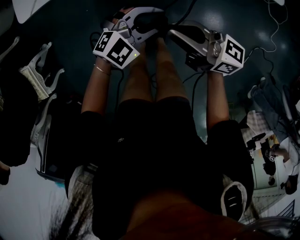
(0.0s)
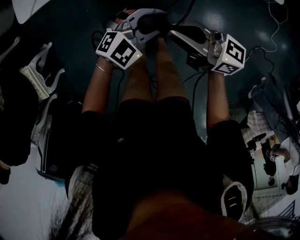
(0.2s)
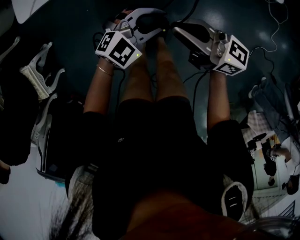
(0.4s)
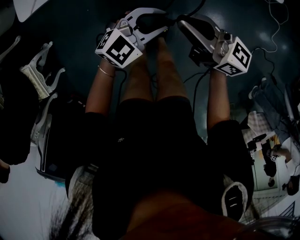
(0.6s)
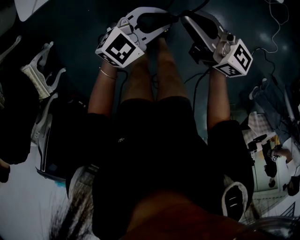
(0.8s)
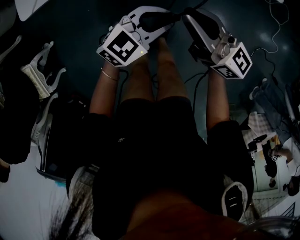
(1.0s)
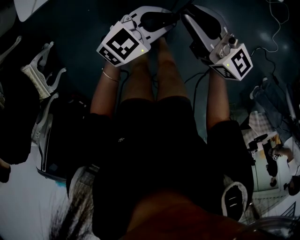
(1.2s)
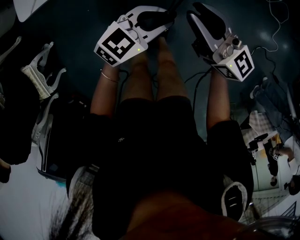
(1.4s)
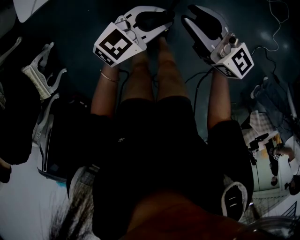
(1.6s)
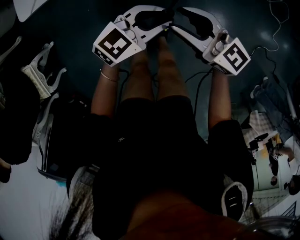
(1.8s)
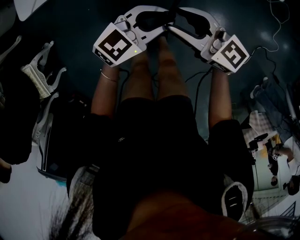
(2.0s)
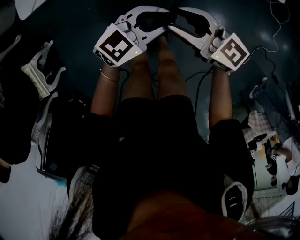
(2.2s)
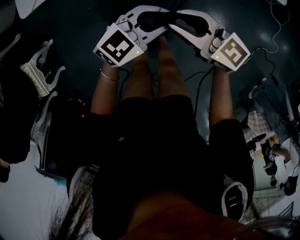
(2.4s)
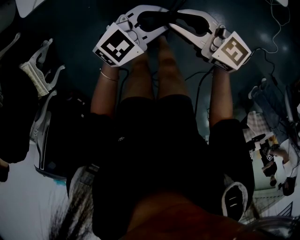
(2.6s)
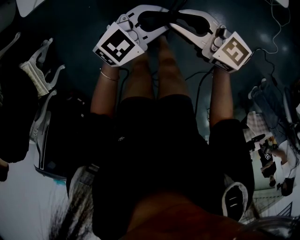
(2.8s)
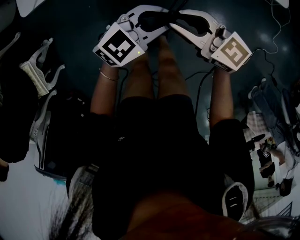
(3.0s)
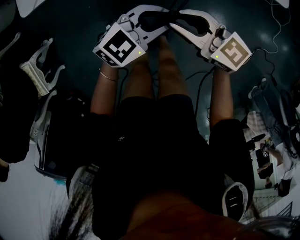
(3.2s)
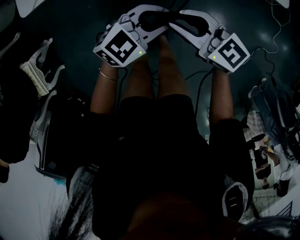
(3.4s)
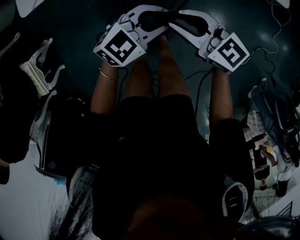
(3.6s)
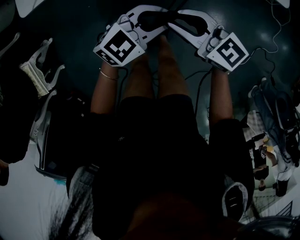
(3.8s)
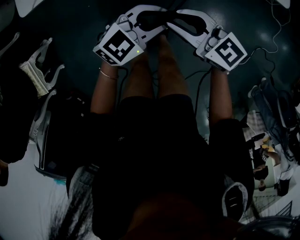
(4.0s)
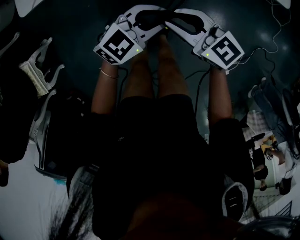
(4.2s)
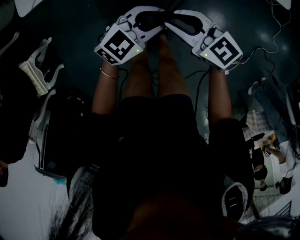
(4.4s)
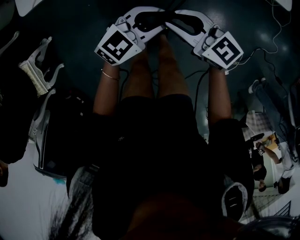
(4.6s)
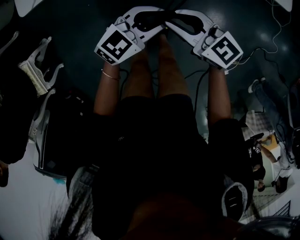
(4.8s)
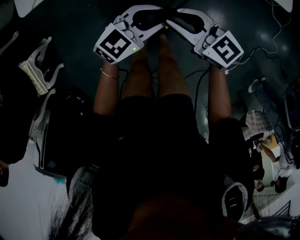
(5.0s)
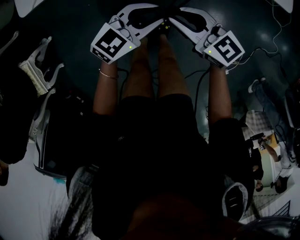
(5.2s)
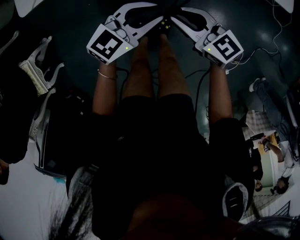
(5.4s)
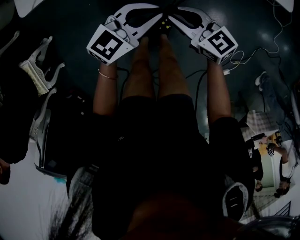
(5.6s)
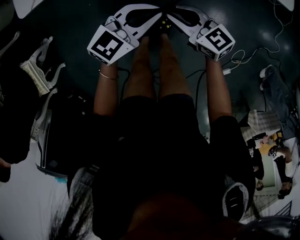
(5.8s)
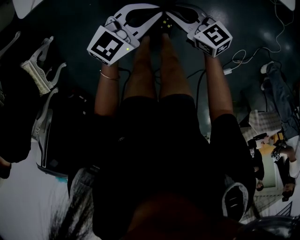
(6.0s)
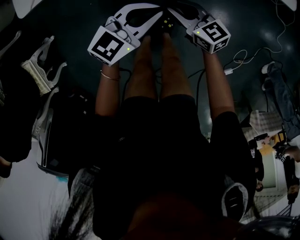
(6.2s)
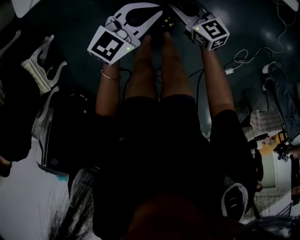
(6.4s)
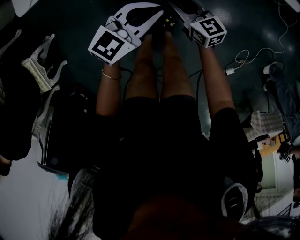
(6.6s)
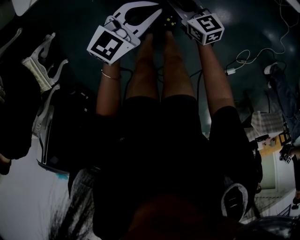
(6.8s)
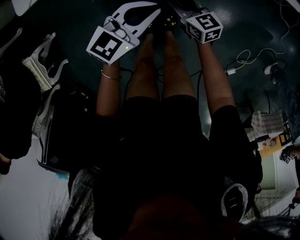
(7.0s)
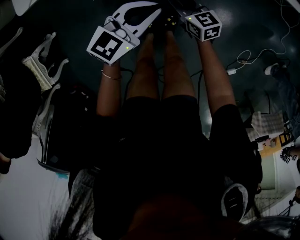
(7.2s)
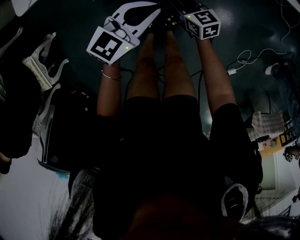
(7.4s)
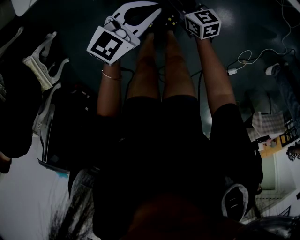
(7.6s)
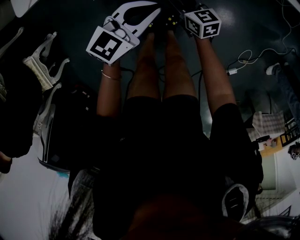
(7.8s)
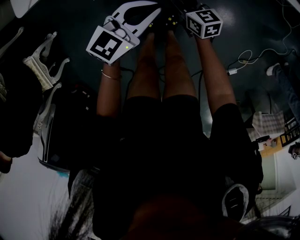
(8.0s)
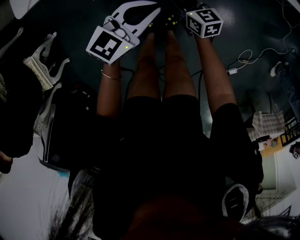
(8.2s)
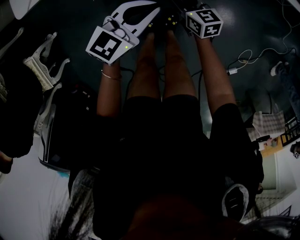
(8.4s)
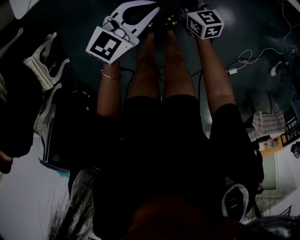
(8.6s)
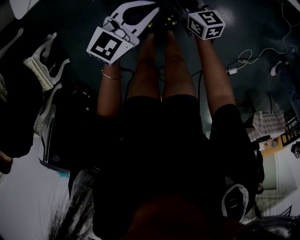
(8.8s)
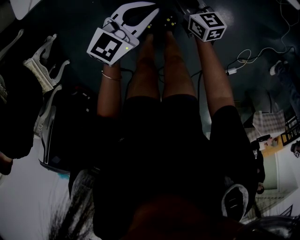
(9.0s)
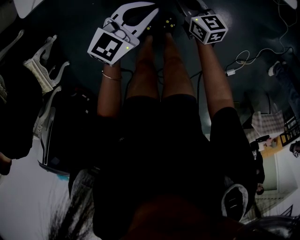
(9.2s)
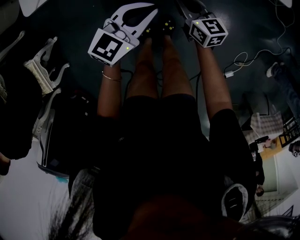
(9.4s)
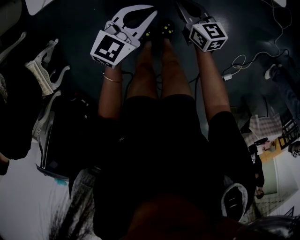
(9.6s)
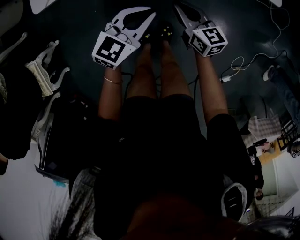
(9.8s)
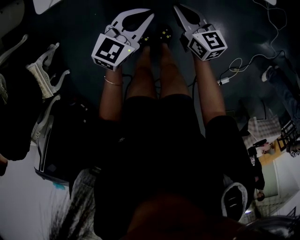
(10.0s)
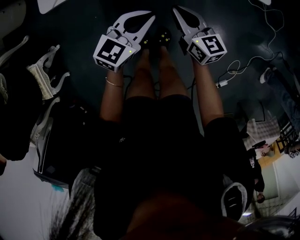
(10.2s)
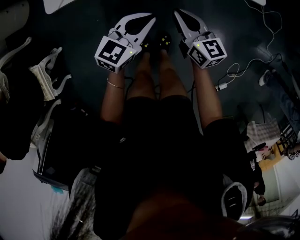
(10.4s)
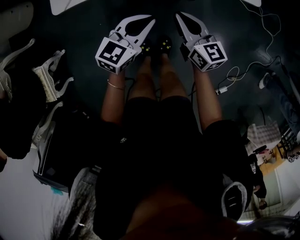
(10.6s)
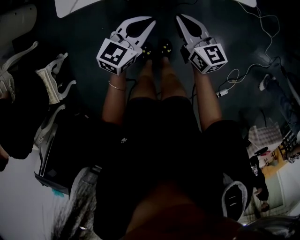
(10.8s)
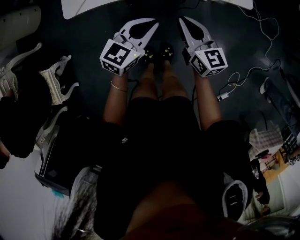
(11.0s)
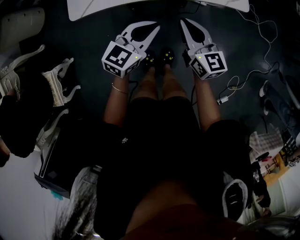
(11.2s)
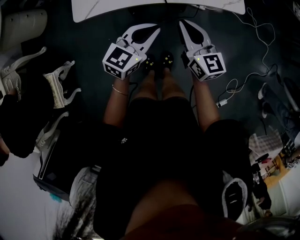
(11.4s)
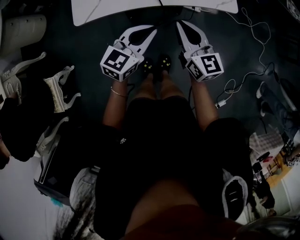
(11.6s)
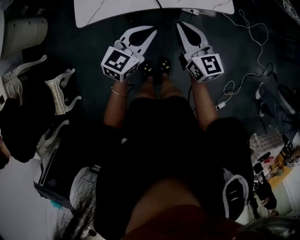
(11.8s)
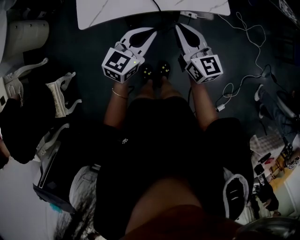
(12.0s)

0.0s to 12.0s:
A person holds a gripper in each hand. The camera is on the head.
0.0s to 1.6s: The left gripper rotates some 30 degrees; the right gripper swivels some 30 degrees.
1.6s to 3.0s: The right gripper moves approximately 5 cm, and rotates about 20 degrees.
3.0s to 4.4s: The grippers stay close to where they were, moving slightly.
4.4s to 6.0s: The right gripper travels downward by roughly 10 cm.
6.0s to 7.6s: The right gripper moves downward, approximately 10 cm.
7.6s to 9.0s: The grippers make only small movements.
9.0s to 10.4s: The left gripper heads upward, covering some 5 cm. The right gripper moves upward, roughly 15 cm.
10.4s to 12.0s: The two grippers go approximately 20 cm upward.

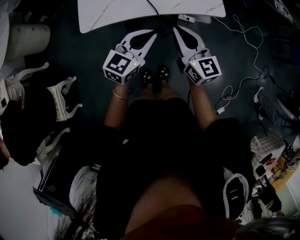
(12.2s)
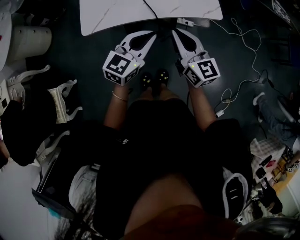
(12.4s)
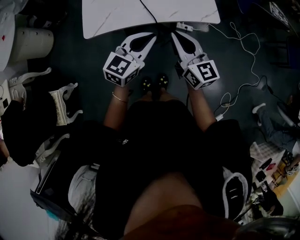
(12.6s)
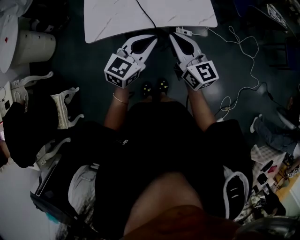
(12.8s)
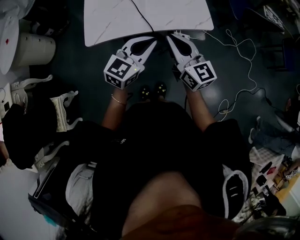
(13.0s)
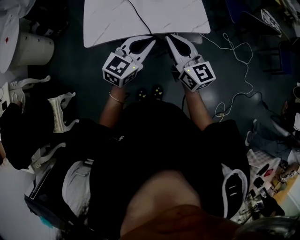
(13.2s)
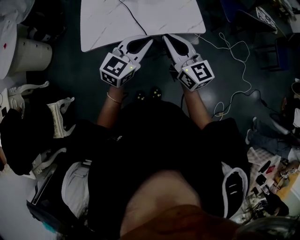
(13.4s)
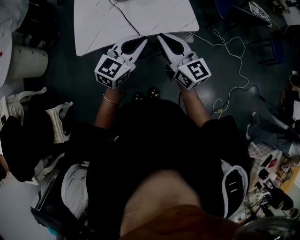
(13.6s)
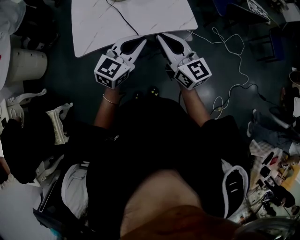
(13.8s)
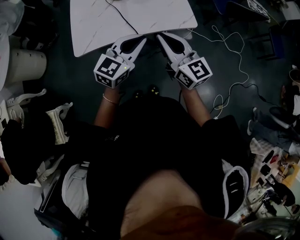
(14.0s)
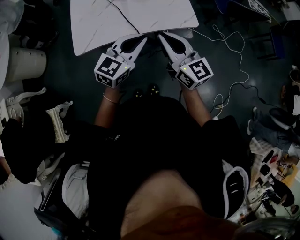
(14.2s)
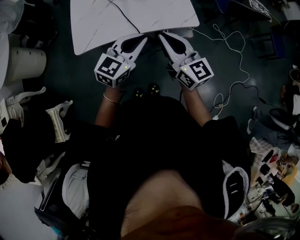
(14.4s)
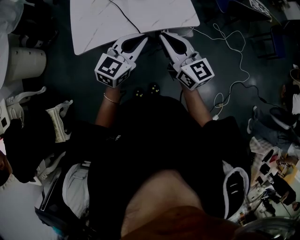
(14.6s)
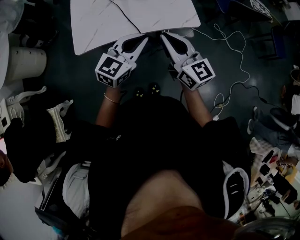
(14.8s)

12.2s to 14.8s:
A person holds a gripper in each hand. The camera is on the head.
12.2s to 13.4s: Both grippers travel together upward, about 10 cm.
13.4s to 14.8s: The grippers make only small movements.

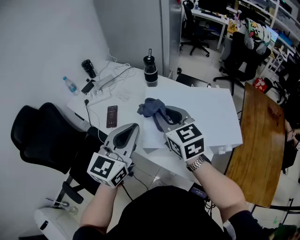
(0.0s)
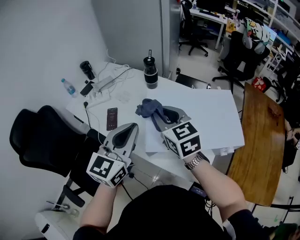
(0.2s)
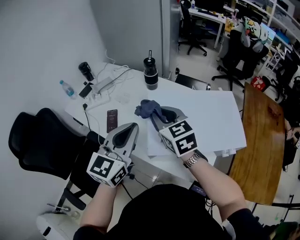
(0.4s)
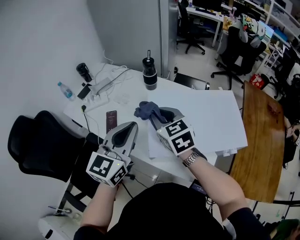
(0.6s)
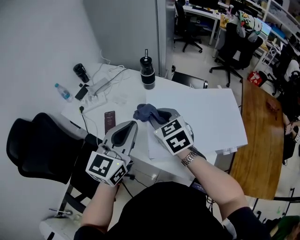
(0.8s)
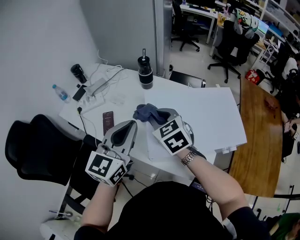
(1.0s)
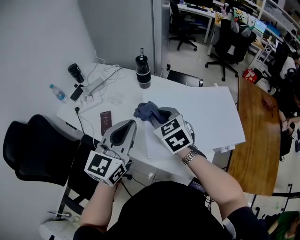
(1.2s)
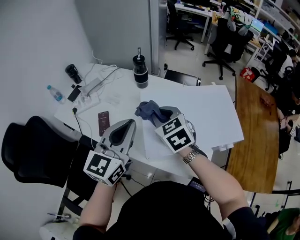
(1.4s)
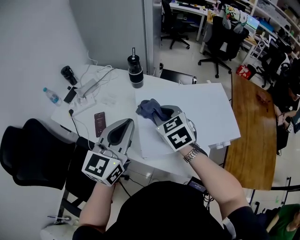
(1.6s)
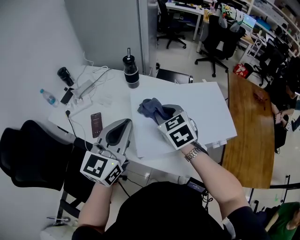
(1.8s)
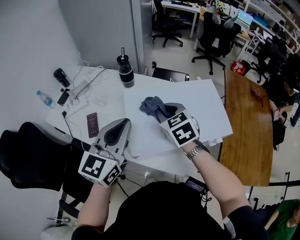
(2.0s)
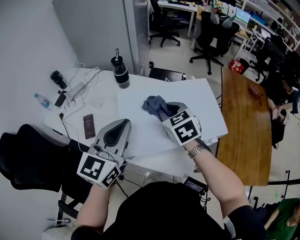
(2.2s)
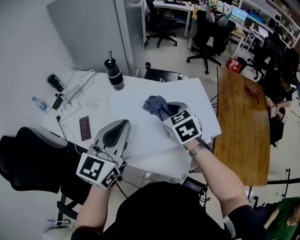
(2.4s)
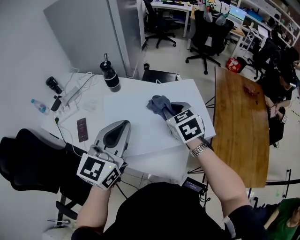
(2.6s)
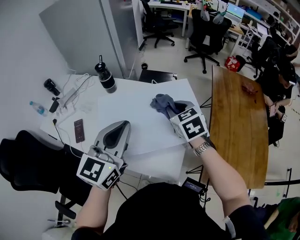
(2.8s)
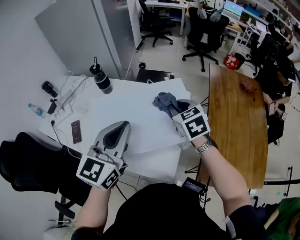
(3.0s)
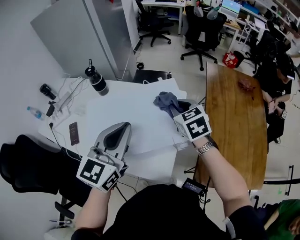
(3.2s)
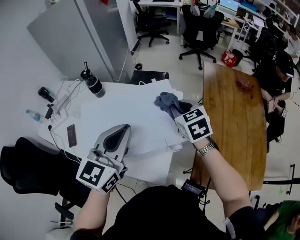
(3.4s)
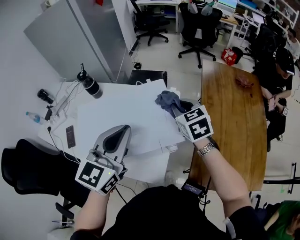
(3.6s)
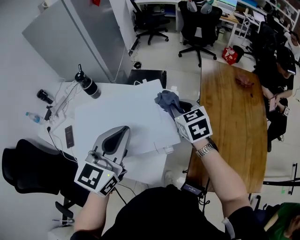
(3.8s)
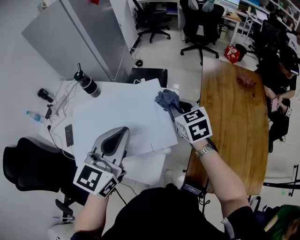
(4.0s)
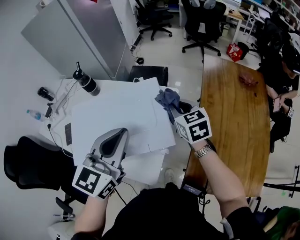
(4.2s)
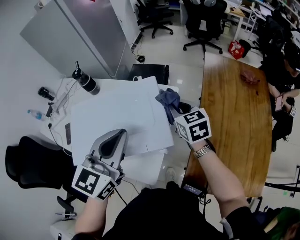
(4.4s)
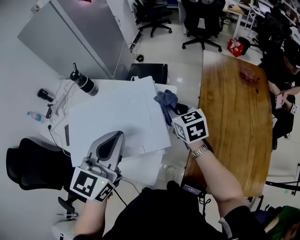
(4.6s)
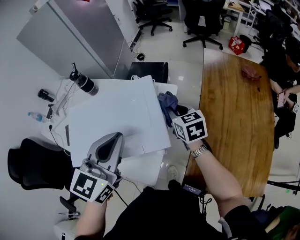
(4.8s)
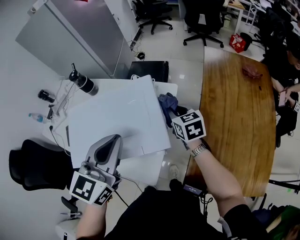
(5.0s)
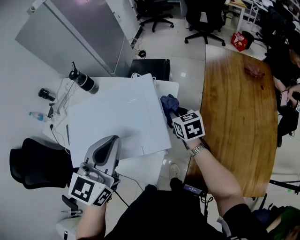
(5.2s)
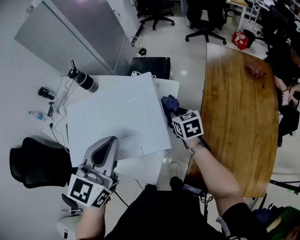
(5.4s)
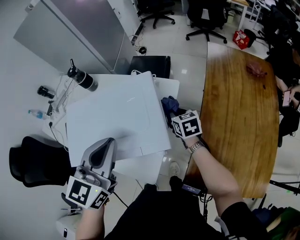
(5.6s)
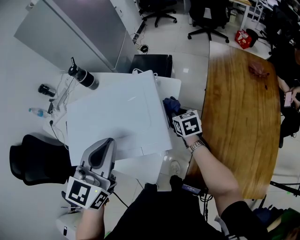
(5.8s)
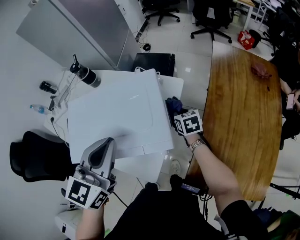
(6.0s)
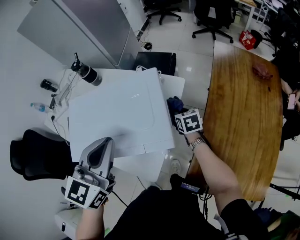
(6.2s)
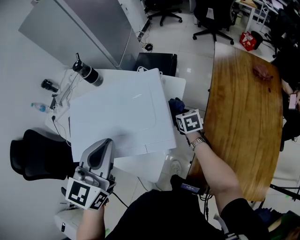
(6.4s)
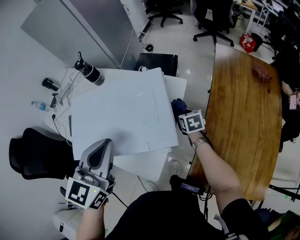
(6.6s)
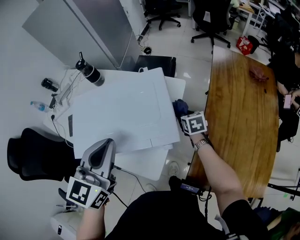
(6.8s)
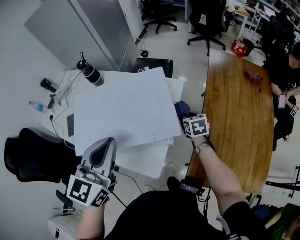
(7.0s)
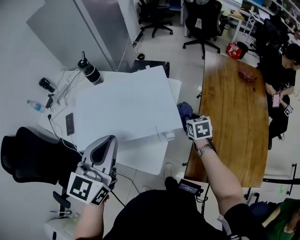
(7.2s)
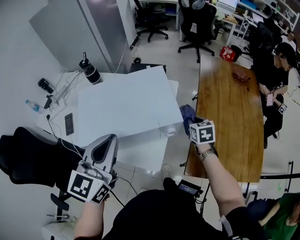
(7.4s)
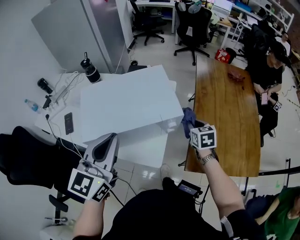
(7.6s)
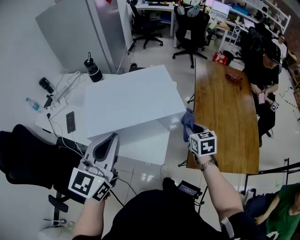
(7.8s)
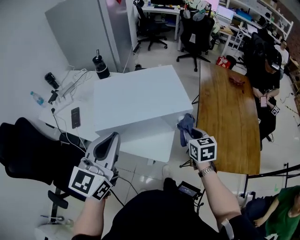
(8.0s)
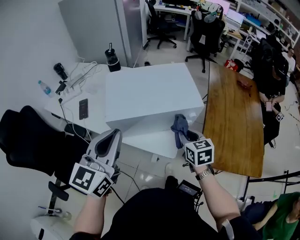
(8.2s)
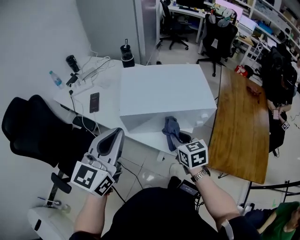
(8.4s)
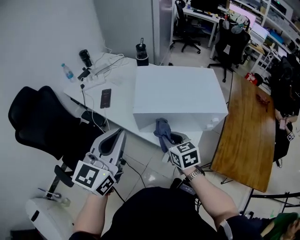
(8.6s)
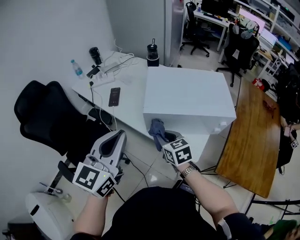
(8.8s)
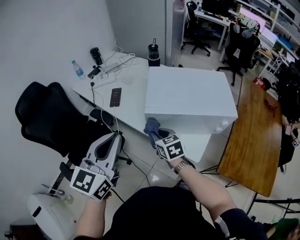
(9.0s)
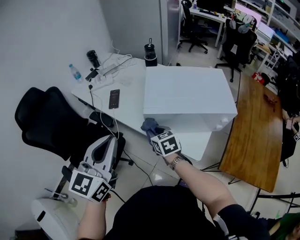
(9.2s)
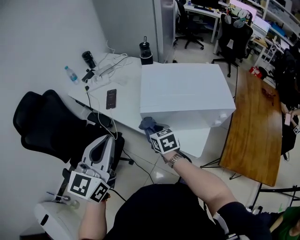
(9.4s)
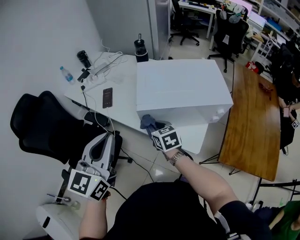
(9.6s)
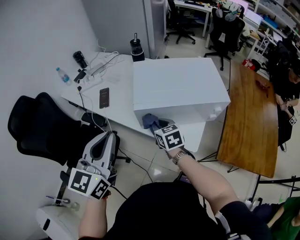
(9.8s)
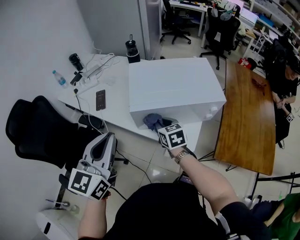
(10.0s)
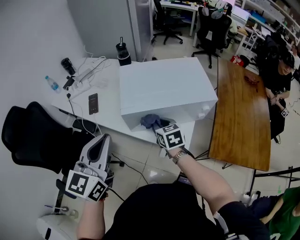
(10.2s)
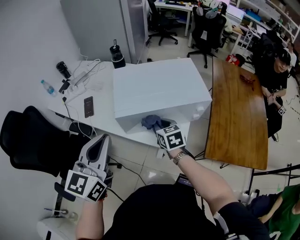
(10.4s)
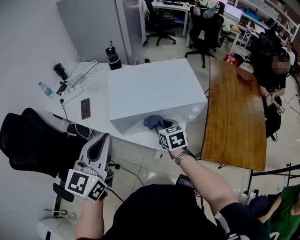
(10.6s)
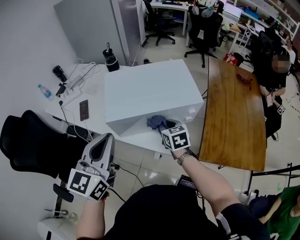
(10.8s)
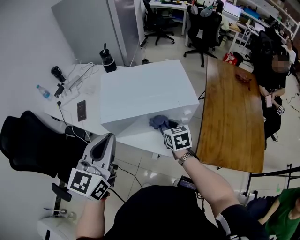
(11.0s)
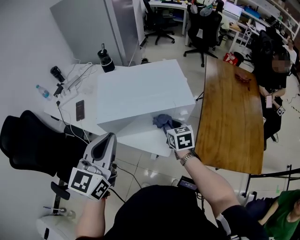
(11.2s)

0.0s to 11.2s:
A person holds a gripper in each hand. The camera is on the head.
0.0s to 1.6s: The left gripper moves forward, roughly 5 cm. Meanwhile the right gripper moves downward and forward, about 10 cm, and changes its angle by about 20 degrees.
1.6s to 3.2s: Both grippers travel together to the right, some 25 cm.
3.2s to 4.8s: The right gripper heads to the right and downward, covering about 15 cm, while the left gripper travels to the right by about 10 cm.
4.8s to 6.4s: The right gripper travels downward by roughly 15 cm.
6.4s to 8.0s: The right gripper moves backward and upward, roughly 30 cm; the left gripper heads backward and to the left, covering some 20 cm.
8.0s to 9.6s: The left gripper ends up about 20 cm from where it was. The right gripper ends up some 35 cm from where it was, and turns by about 30 degrees.
9.6s to 11.2s: The left gripper heads to the right, covering roughly 15 cm; the right gripper is displaced to the right by some 25 cm.
